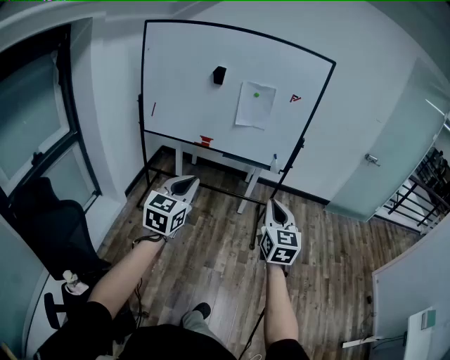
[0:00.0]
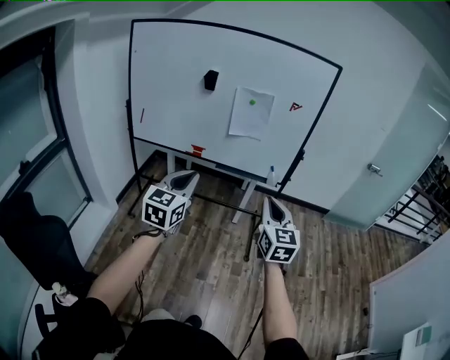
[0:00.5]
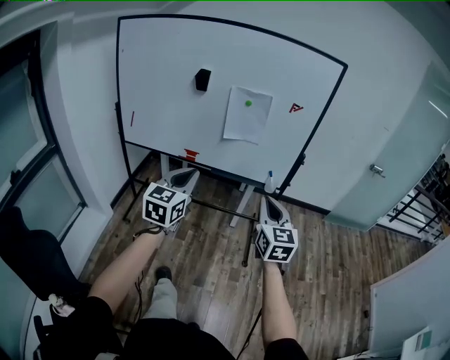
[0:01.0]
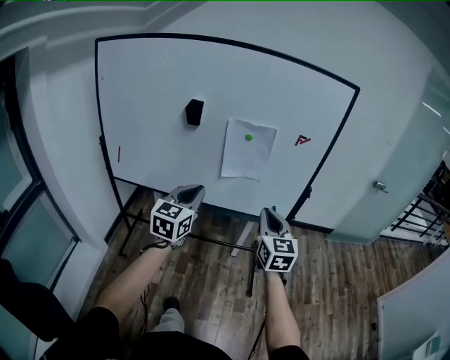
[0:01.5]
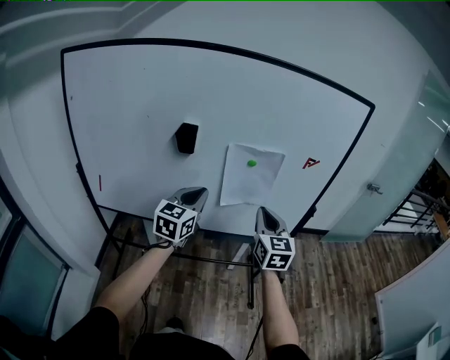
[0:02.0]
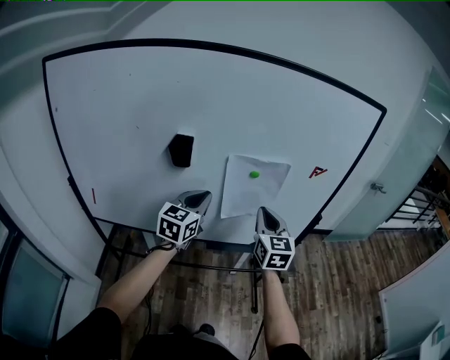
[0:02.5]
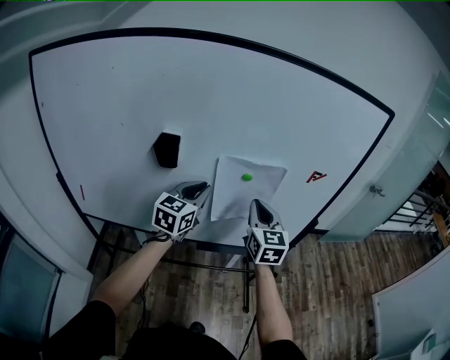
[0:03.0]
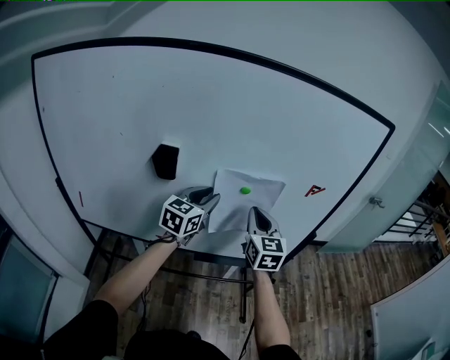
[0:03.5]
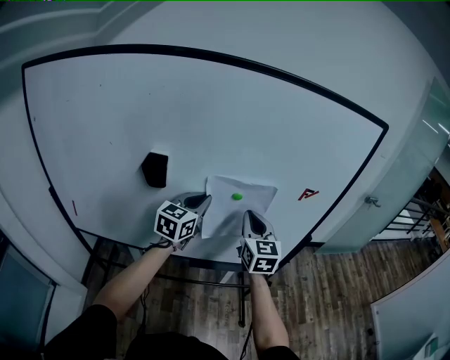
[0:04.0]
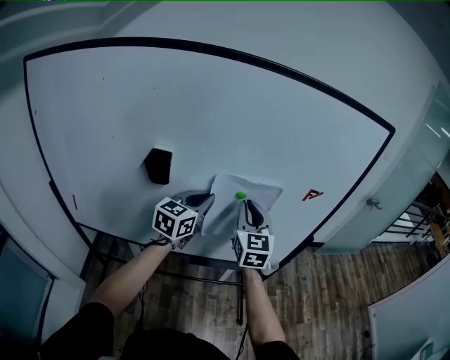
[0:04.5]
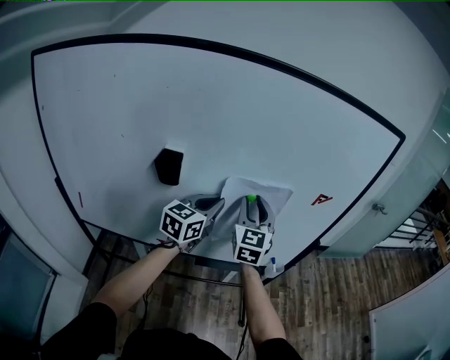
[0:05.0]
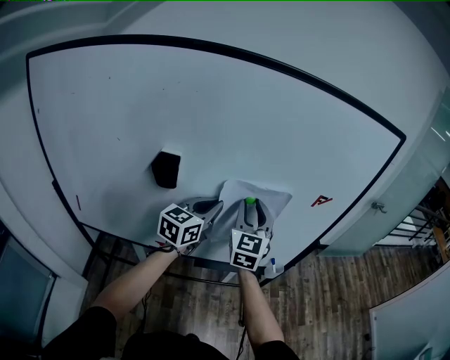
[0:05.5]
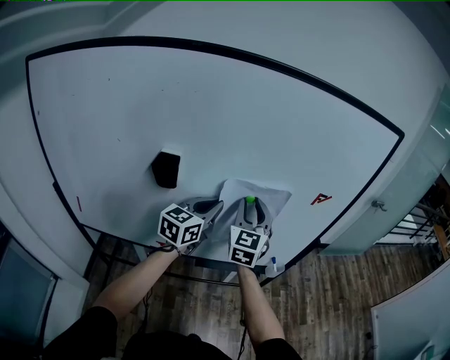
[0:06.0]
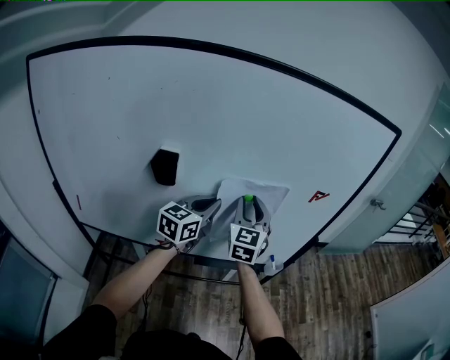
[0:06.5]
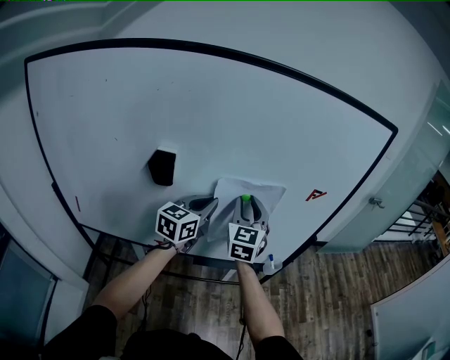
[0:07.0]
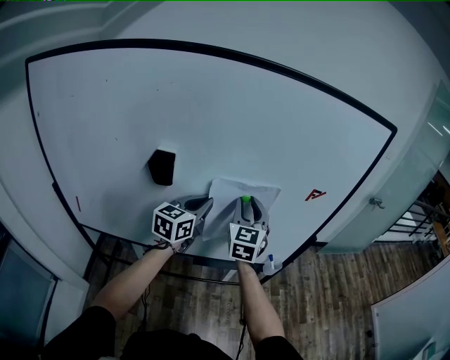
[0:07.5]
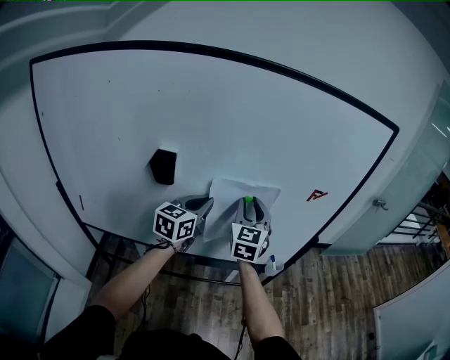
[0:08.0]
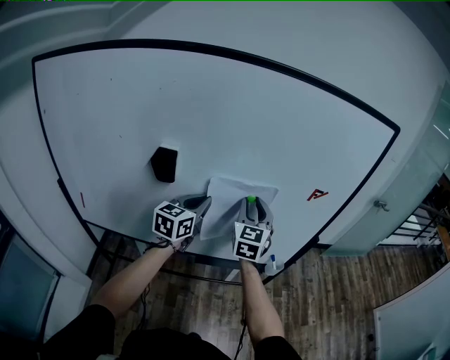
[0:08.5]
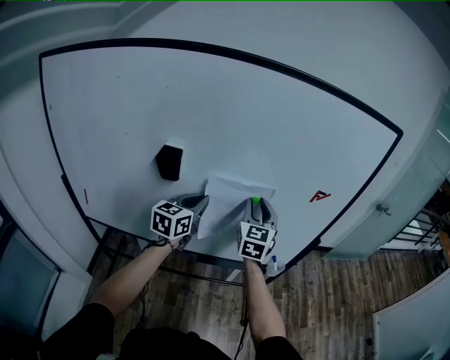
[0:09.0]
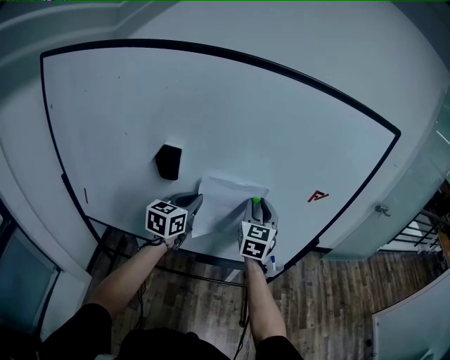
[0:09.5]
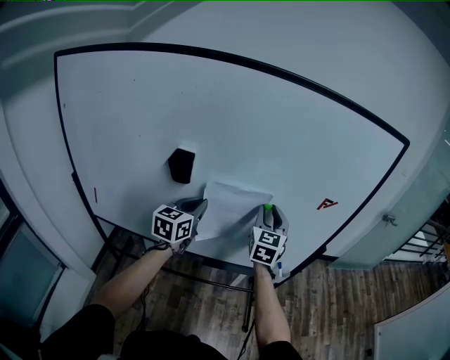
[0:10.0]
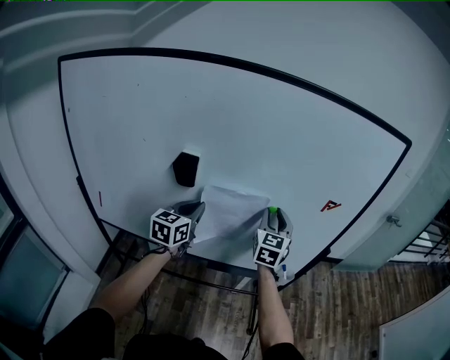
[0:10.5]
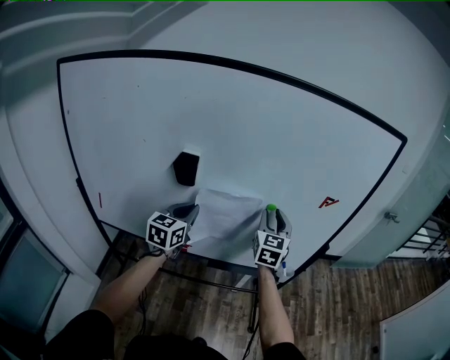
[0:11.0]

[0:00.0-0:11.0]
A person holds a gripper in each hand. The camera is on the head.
0:00.0 to 0:02.0: The pair of grippers is taken forward, roughly 60 cm.
0:02.0 to 0:03.5: The two grippers go approximately 15 cm forward.
0:03.5 to 0:05.5: The right gripper ends up about 5 cm from where it was, and opens up.
0:05.5 to 0:09.0: The grippers make only small movements.
0:09.0 to 0:11.0: The left gripper goes some 5 cm to the left.

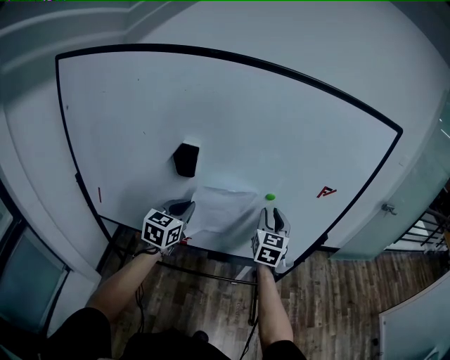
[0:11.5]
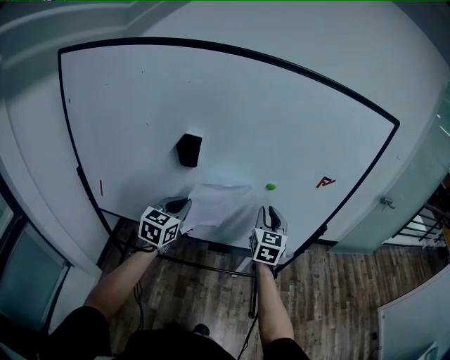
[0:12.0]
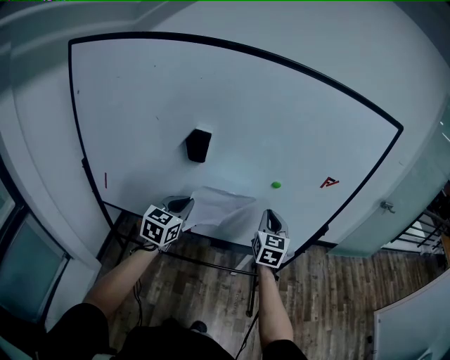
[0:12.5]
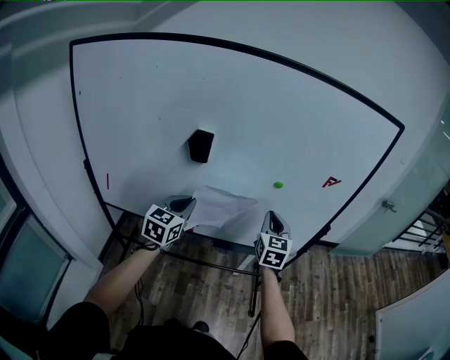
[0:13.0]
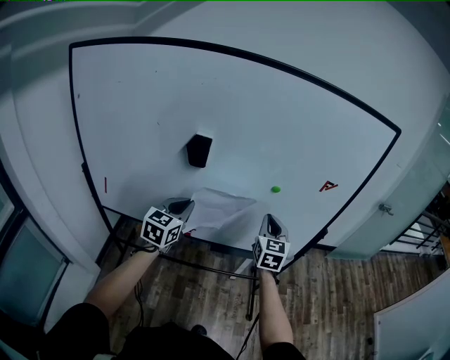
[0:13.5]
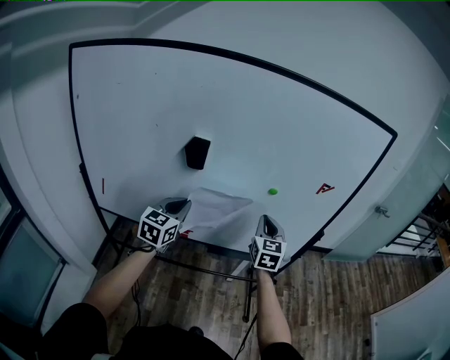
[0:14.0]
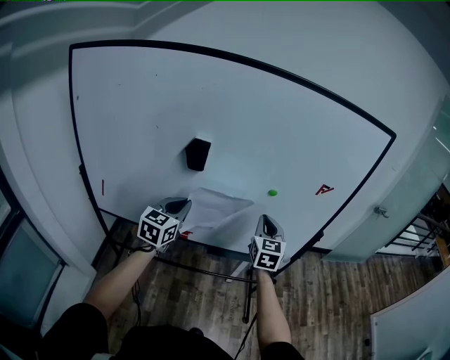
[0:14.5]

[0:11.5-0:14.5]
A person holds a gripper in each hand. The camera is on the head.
0:11.5 to 0:13.0: The two grippers go roughly 5 cm backward. The right gripper closes.
0:13.0 to 0:14.5: The grippers make only small movements.

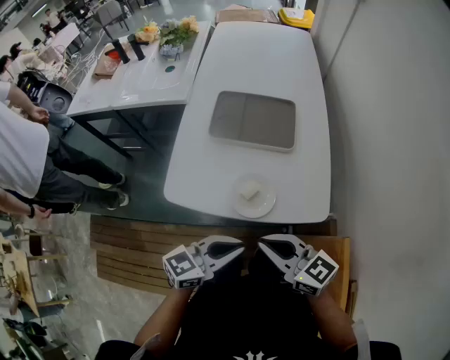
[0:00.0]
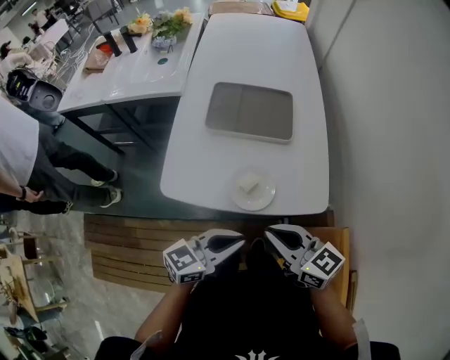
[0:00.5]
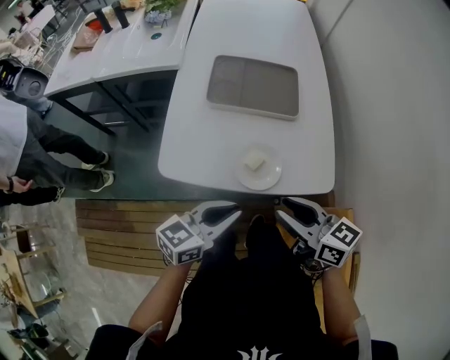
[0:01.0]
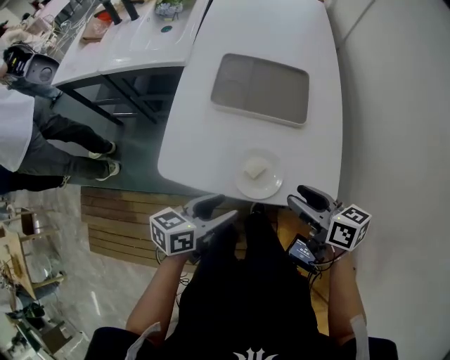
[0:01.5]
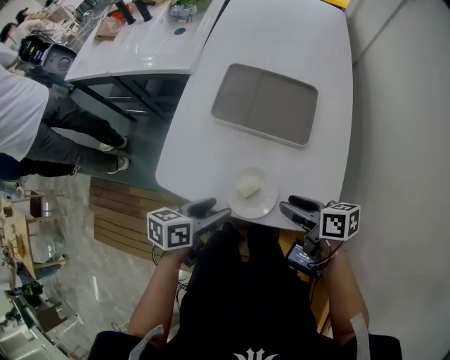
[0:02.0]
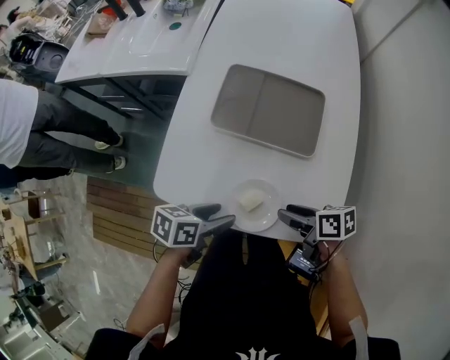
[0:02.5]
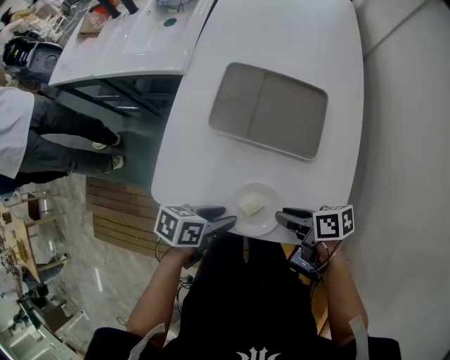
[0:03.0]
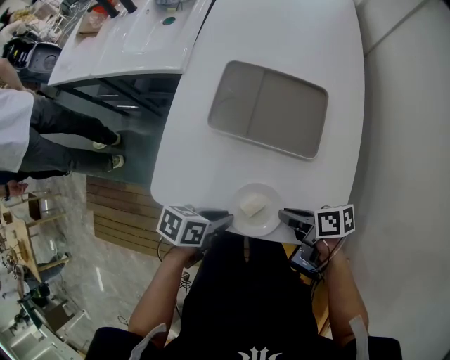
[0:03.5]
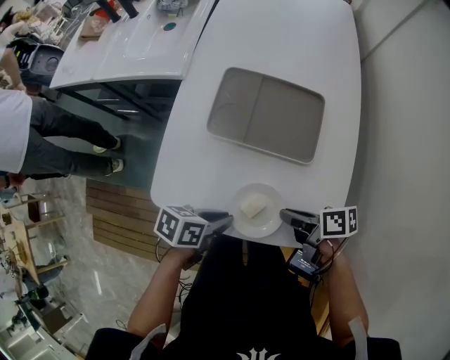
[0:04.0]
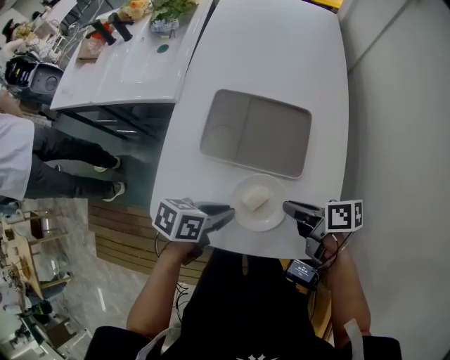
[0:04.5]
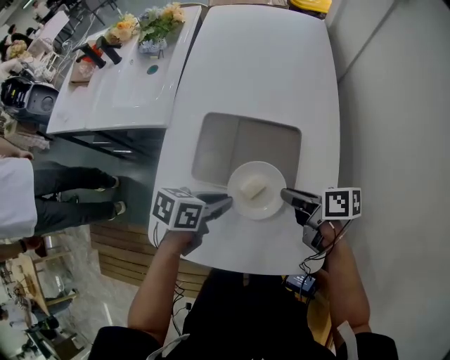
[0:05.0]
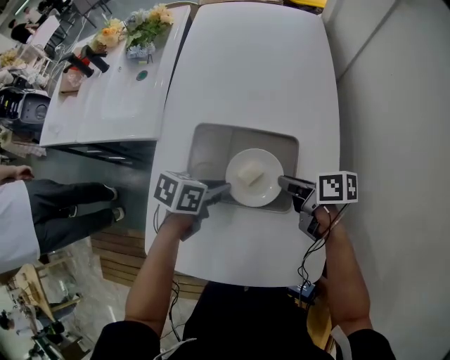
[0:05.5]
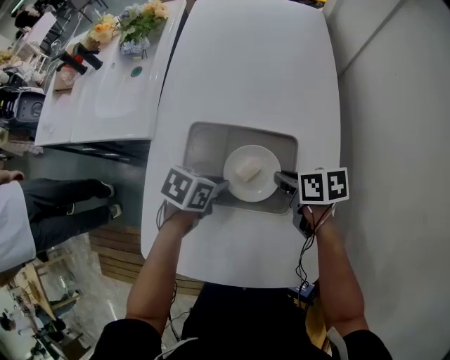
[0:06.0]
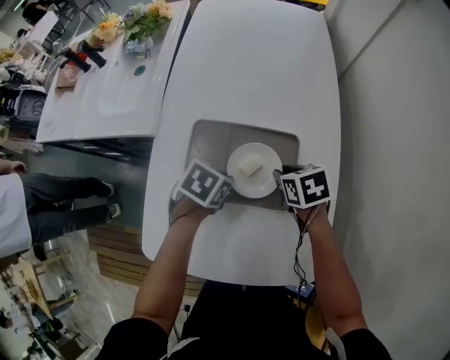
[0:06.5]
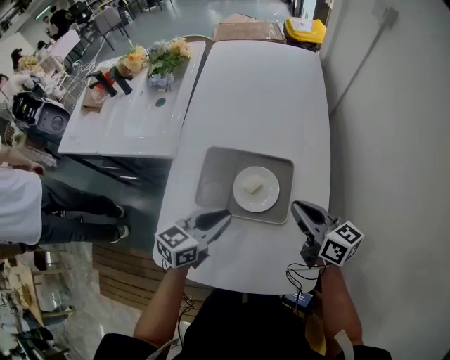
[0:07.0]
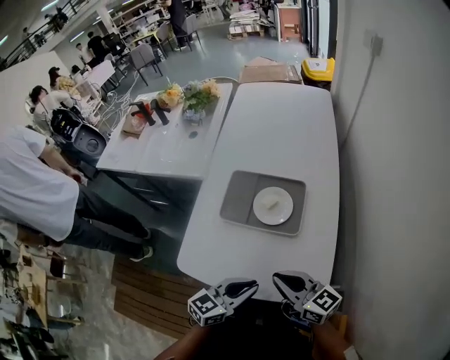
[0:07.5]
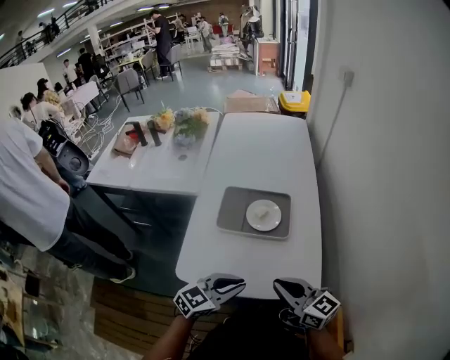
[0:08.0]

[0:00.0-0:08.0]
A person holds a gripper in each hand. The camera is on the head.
0:00.0 to 0:02.0: The left gripper shifts some 15 cm forward, downward and to the left, turns by roughly 40 degrees, and opens its fingers. The right gripper travels forward, downward and to the right by some 20 cm, rotates roughly 40 degrees, and opens up.
0:02.0 to 0:04.0: The right gripper changes place by about 5 cm, and closes up. The left gripper shifts by about 5 cm, and closes.
0:04.0 to 0:06.0: The left gripper moves about 25 cm, and turns by some 20 degrees. Meanwhile the right gripper moves approximately 25 cm, and swivels about 20 degrees.
0:06.0 to 0:08.0: The left gripper shifts by about 35 cm, and points its fingers some 40 degrees further upward. Meanwhile the right gripper shifts by some 40 cm, and points its fingers approximately 40 degrees further upward.

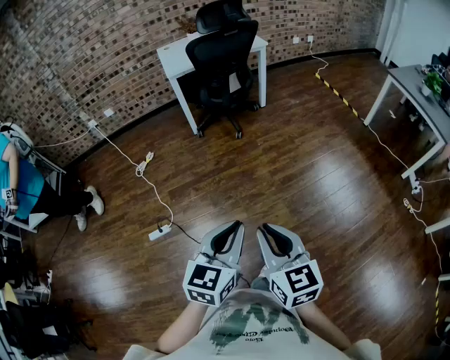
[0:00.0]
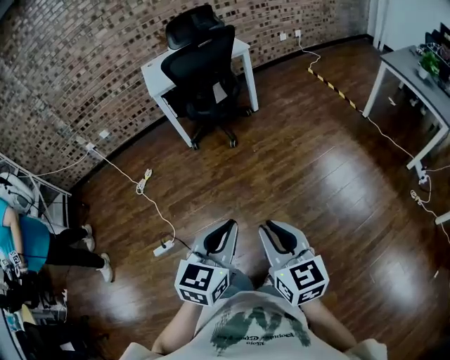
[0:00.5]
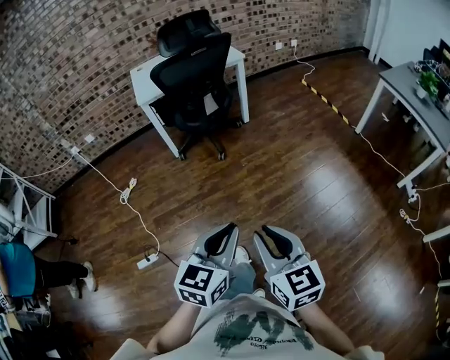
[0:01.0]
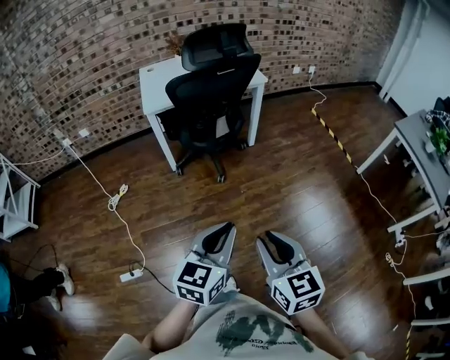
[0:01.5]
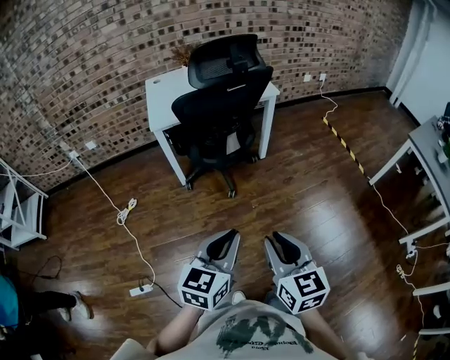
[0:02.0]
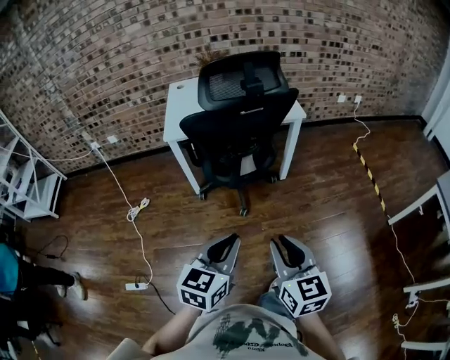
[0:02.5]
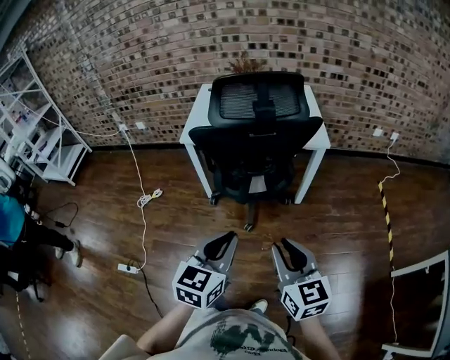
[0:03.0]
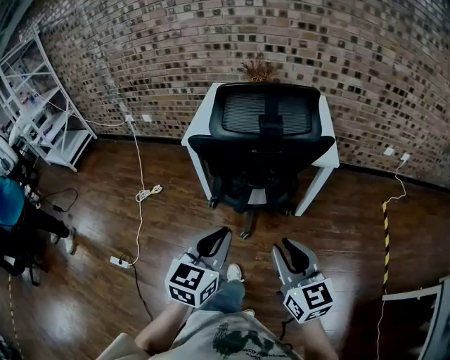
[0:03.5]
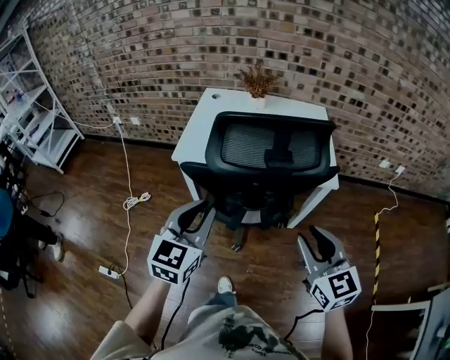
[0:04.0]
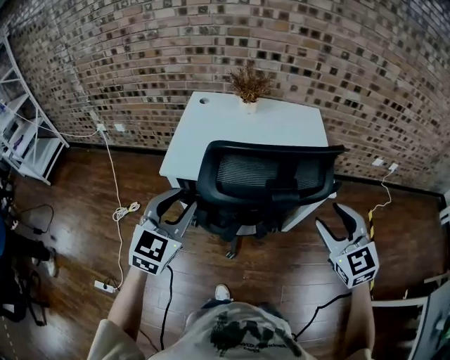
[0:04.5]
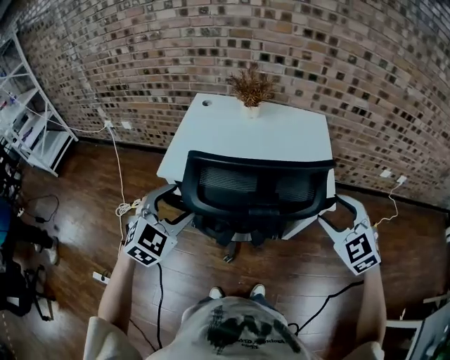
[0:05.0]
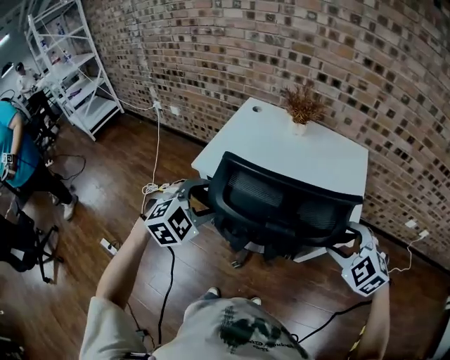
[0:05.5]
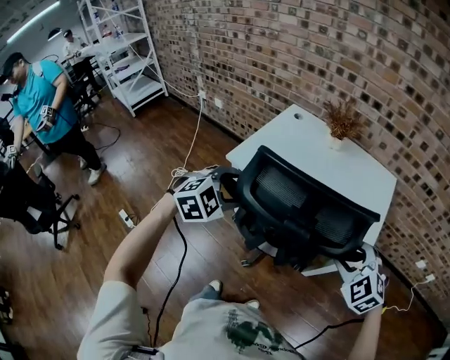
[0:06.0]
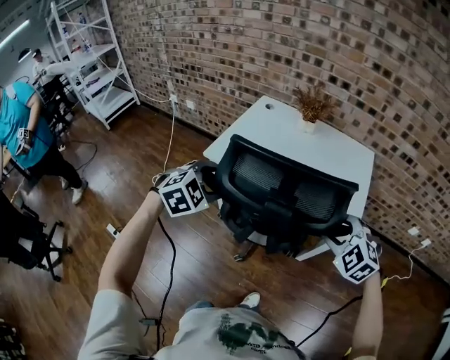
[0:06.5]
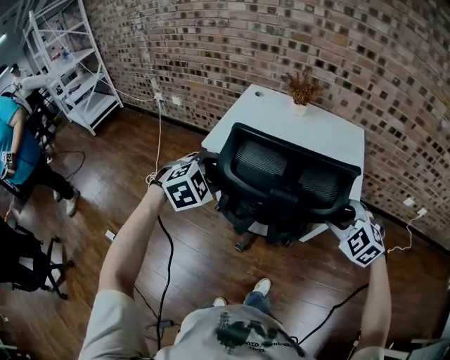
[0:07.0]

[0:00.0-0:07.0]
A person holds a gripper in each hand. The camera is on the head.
0:00.0 to 0:02.0: The two grippers travel together, forward, roughly 40 cm.
0:02.0 to 0:03.5: The right gripper moves roughly 35 cm, and swivels some 30 degrees; the left gripper moves approximately 30 cm, and rotates roughly 30 degrees.
0:03.5 to 0:05.0: The left gripper is displaced forward by approximately 30 cm, turns by approximately 40 degrees, and opens its fingers. The right gripper is displaced forward and to the right by about 35 cm, rolls counterclockwise, seen from behind, by about 40 degrees, and opens up.
0:05.0 to 0:07.0: The right gripper heads to the left, covering about 5 cm, and rotates approximately 20 degrees.
